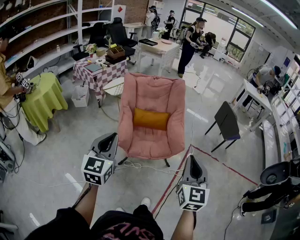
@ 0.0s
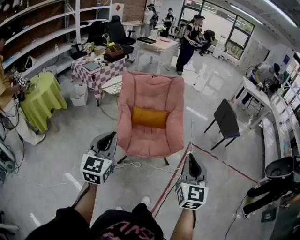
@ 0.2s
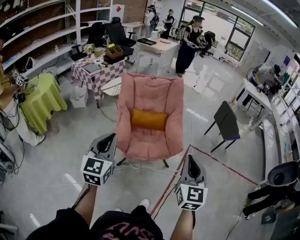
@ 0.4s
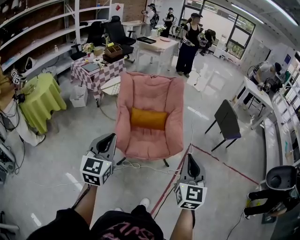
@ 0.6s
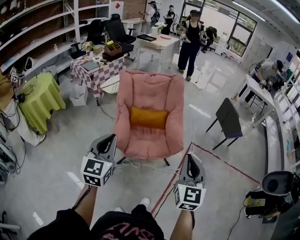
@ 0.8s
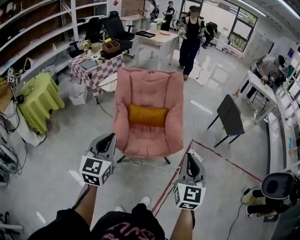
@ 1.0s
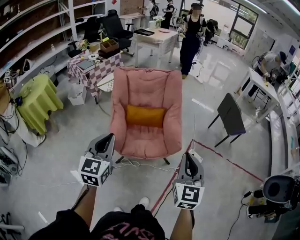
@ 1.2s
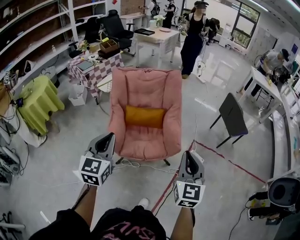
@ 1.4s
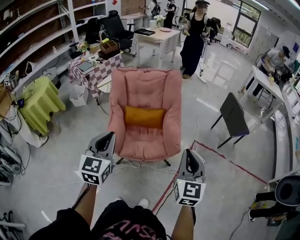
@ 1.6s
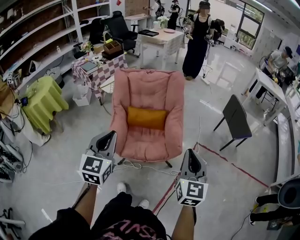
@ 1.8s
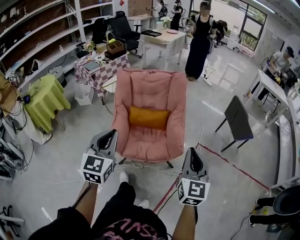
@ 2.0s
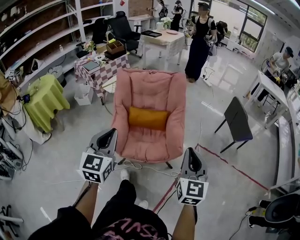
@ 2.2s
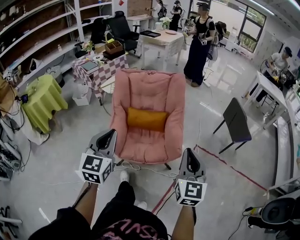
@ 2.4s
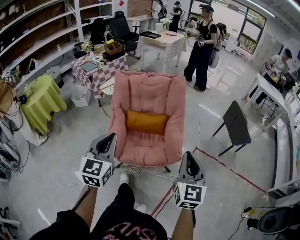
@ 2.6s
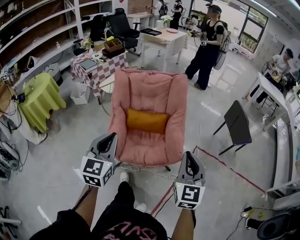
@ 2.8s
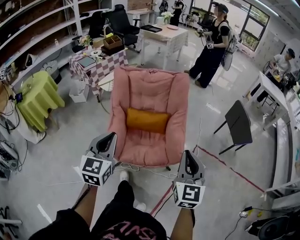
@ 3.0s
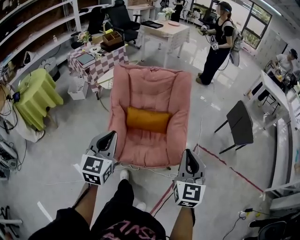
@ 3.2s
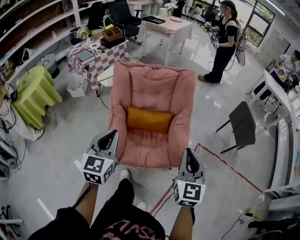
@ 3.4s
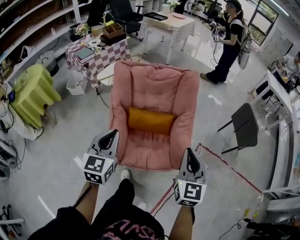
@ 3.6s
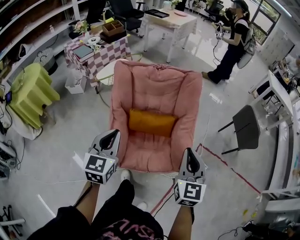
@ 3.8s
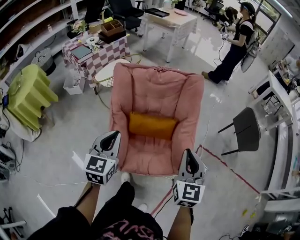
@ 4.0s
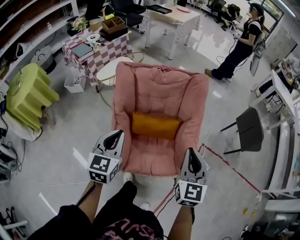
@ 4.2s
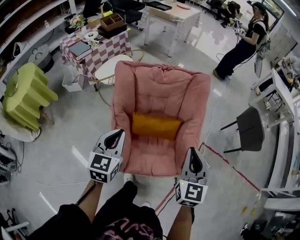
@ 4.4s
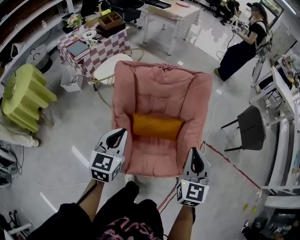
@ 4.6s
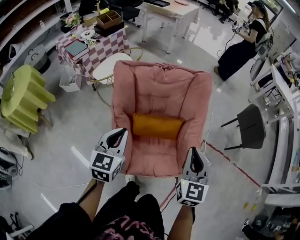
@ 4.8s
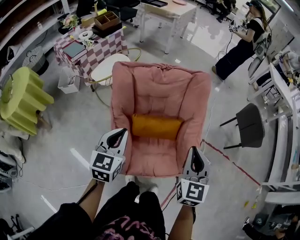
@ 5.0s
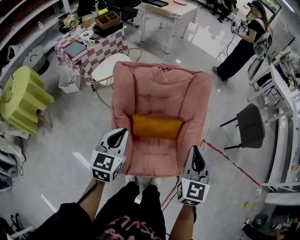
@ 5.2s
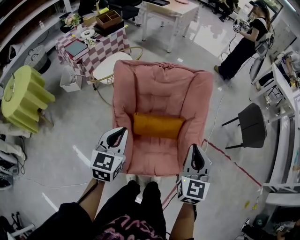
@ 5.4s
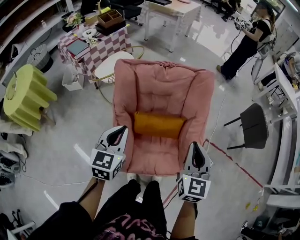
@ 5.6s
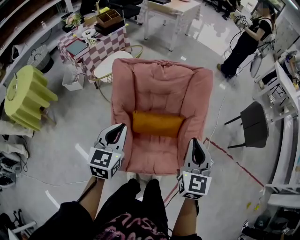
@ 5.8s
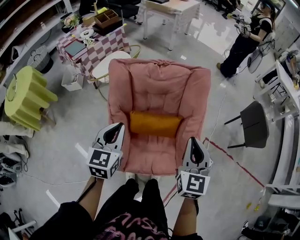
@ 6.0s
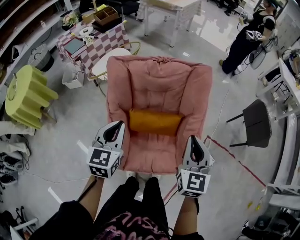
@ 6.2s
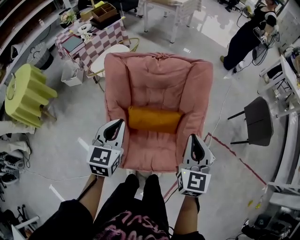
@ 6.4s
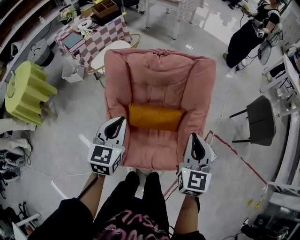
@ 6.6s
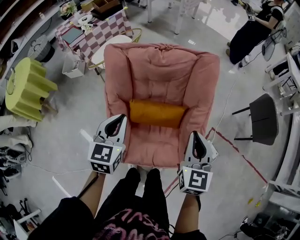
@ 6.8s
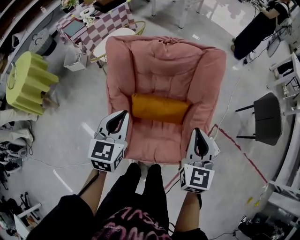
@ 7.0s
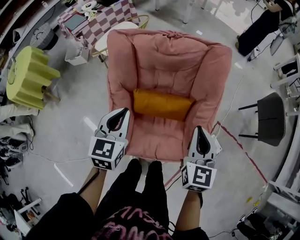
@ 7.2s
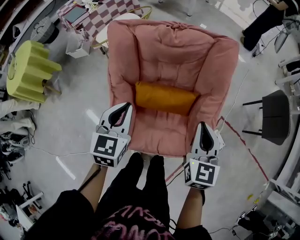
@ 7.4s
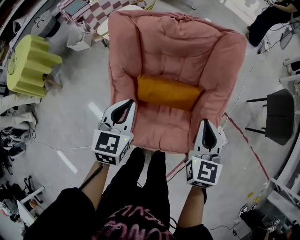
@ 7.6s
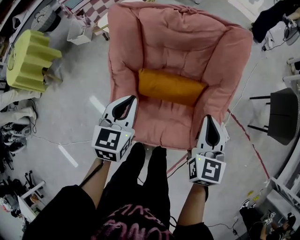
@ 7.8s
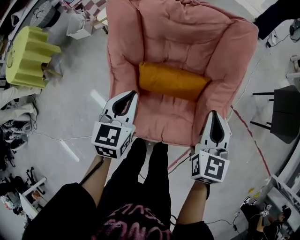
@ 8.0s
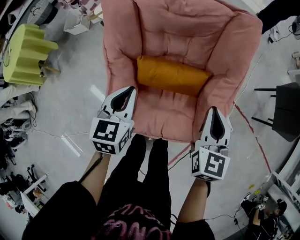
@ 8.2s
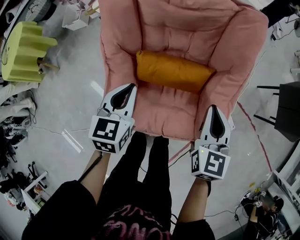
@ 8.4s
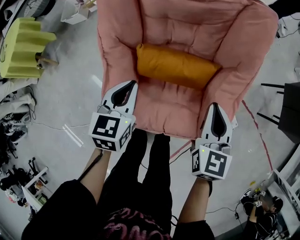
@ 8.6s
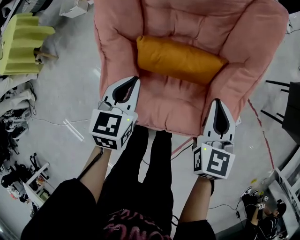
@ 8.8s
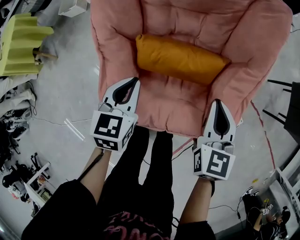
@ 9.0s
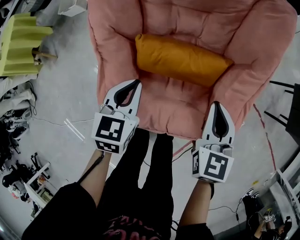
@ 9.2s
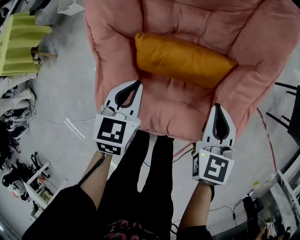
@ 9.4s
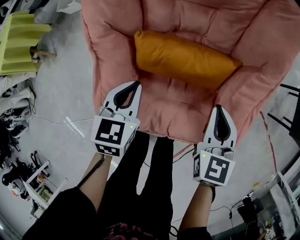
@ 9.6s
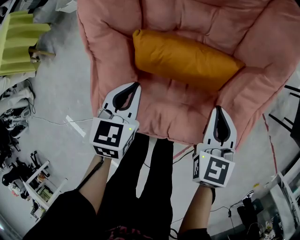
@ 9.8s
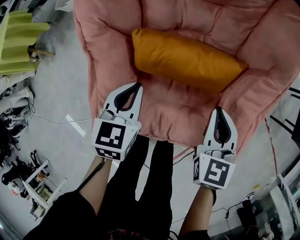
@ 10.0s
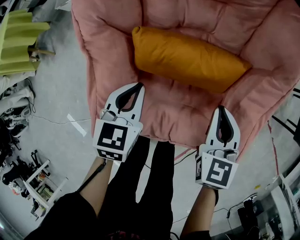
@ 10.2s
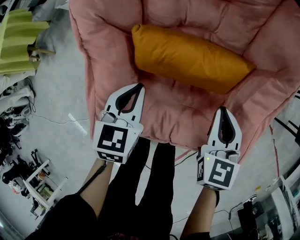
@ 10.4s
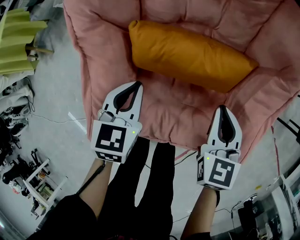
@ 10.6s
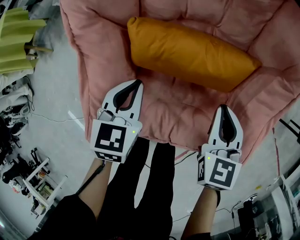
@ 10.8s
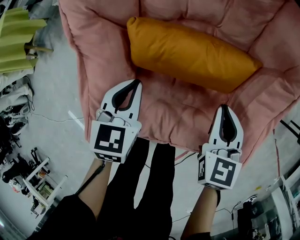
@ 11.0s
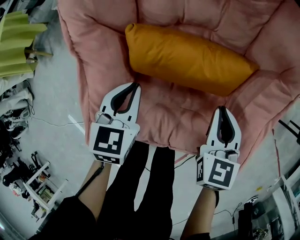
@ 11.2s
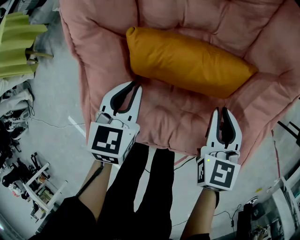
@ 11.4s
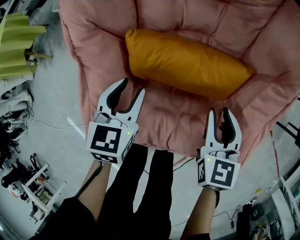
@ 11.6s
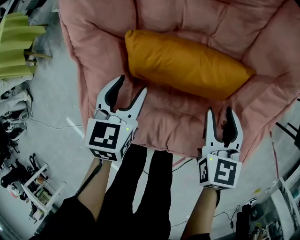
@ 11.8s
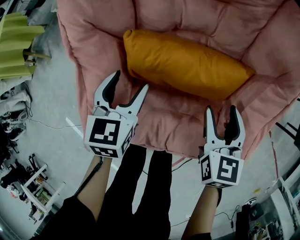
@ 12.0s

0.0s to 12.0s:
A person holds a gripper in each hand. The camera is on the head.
0.0s to 1.6s: Both grippers move forward and to the right, roughly 20 cm.
1.6s to 3.0s: The two grippers go roughly 10 cm forward.
3.0s to 4.4s: The left gripper heads forward, covering about 25 cm, while the right gripper is displaced forward and to the left by roughly 25 cm.
4.4s to 6.0s: Both grippers move forward, about 5 cm.
6.0s to 7.6s: Both grippers move downward, some 15 cm.
7.6s to 9.0s: Both grippers move downward, about 15 cm.
9.0s to 10.4s: Both grippers travel together downward, roughly 10 cm.
10.4s to 12.0s: The right gripper opens. Meanwhile the left gripper opens.

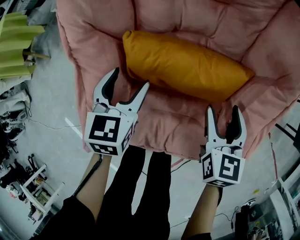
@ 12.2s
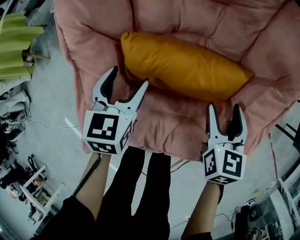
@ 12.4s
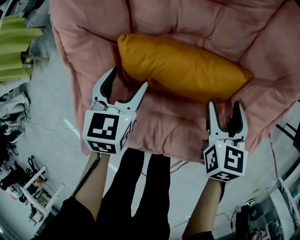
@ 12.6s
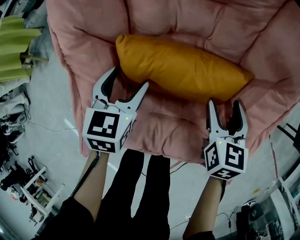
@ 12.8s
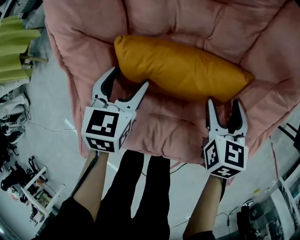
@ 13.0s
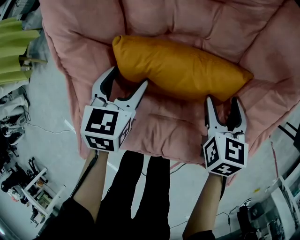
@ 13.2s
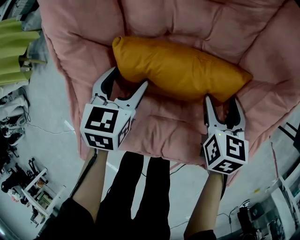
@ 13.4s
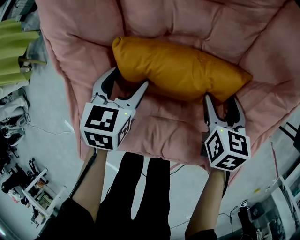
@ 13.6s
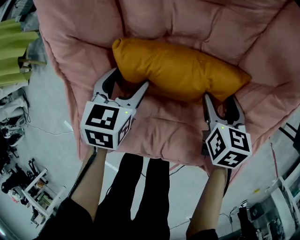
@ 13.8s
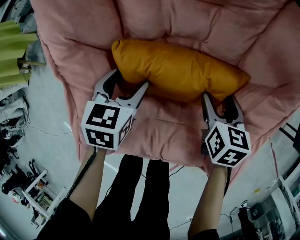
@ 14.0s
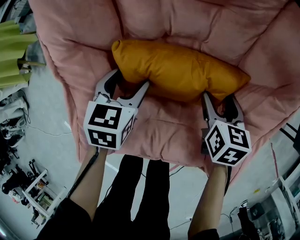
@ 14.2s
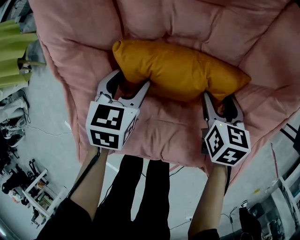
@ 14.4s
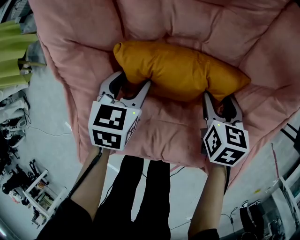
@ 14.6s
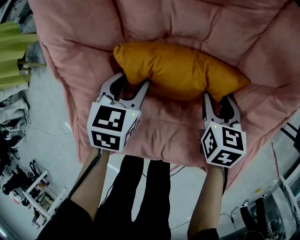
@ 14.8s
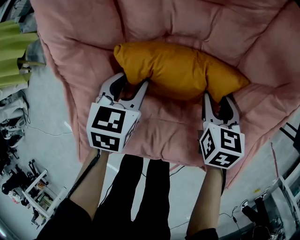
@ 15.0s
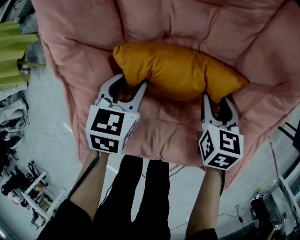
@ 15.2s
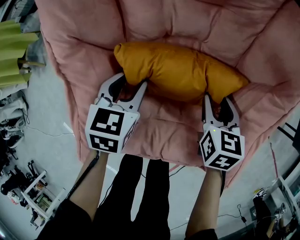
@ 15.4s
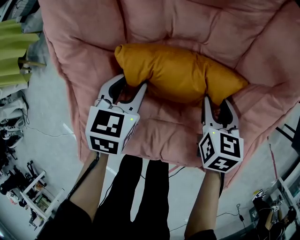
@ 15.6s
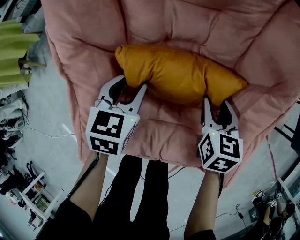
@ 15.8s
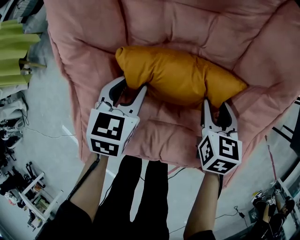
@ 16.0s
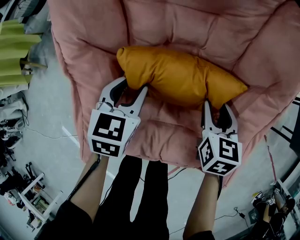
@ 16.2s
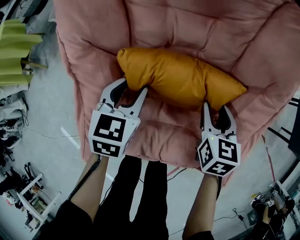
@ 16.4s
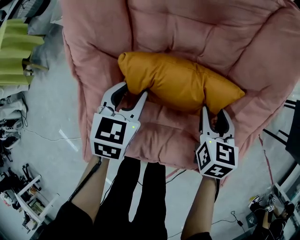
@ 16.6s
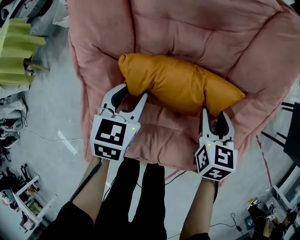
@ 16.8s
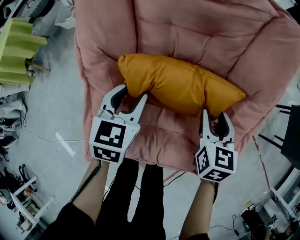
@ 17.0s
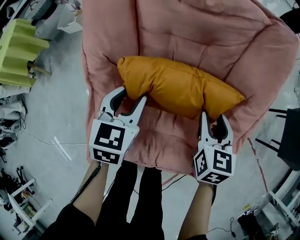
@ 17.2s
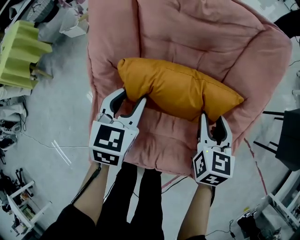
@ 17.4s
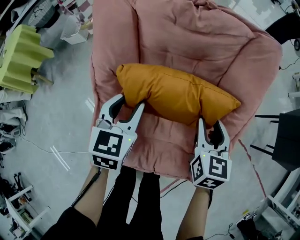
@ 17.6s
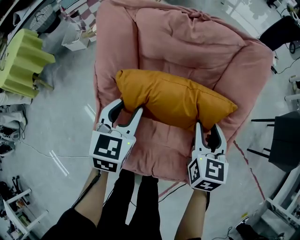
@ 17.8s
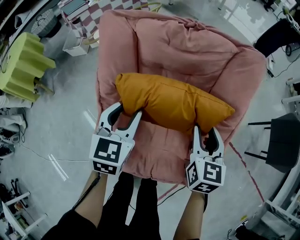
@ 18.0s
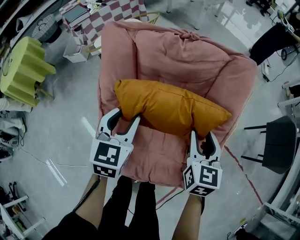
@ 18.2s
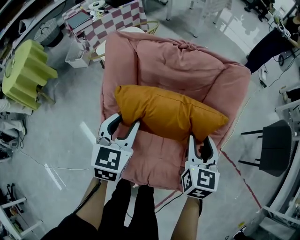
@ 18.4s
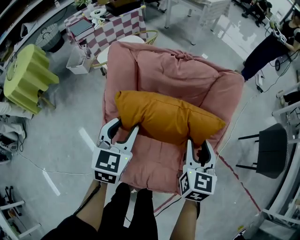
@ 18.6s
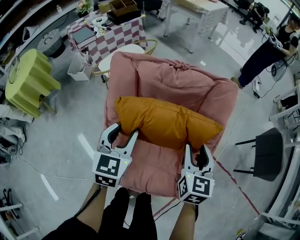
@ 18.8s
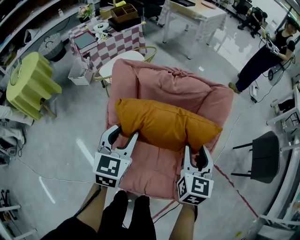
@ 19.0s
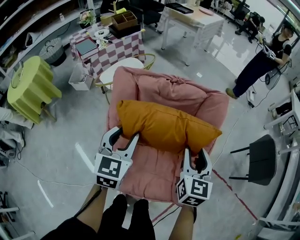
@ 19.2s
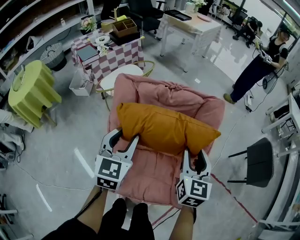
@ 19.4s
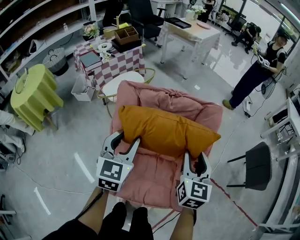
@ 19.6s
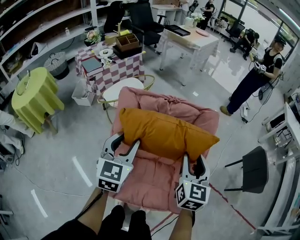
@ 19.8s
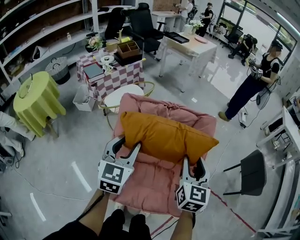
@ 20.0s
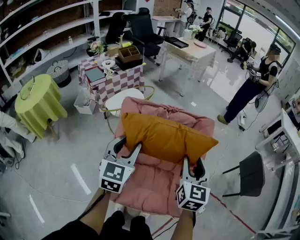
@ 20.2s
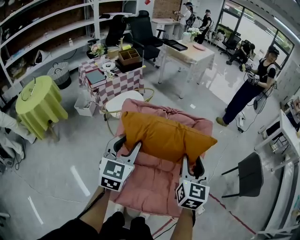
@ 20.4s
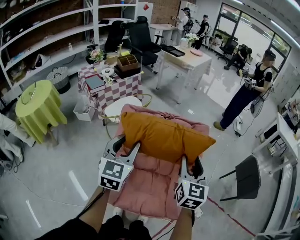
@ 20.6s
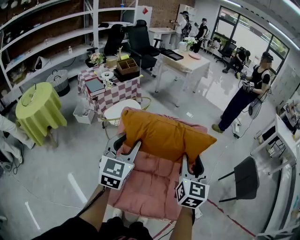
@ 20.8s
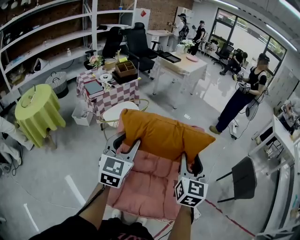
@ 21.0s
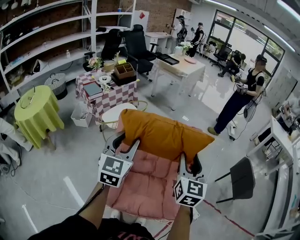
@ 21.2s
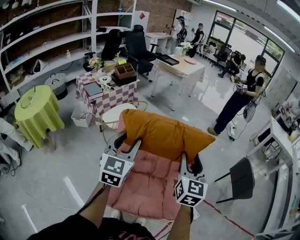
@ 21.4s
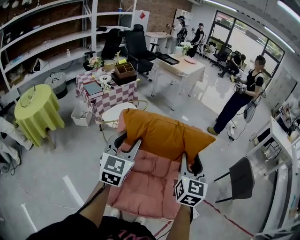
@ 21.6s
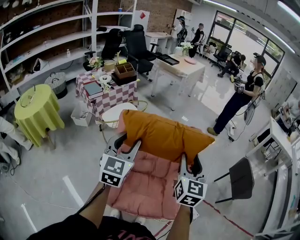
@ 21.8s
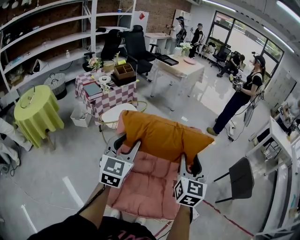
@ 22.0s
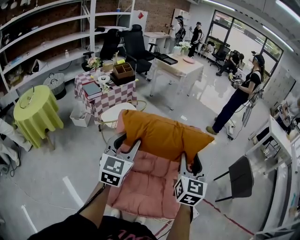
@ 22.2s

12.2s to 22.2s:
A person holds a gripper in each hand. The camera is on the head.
12.2s to 13.6s: The left gripper moves approximately 5 cm. Meanwhile the right gripper shifts some 5 cm downward.
13.6s to 15.0s: The left gripper closes up. Meanwhile the right gripper closes up.
15.0s to 16.4s: The right gripper changes place by roughly 5 cm; the left gripper shifts by about 5 cm.
16.4s to 18.0s: Both grippers travel together upward, approximately 20 cm.
18.0s to 19.4s: The two grippers go roughly 20 cm upward.
19.4s to 20.8s: The grippers both shift upward by approximately 15 cm.
20.8s to 22.2s: There are only small adjustments of the grippers.

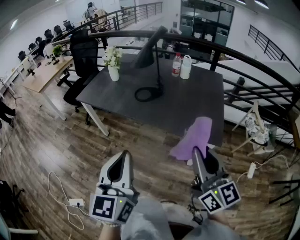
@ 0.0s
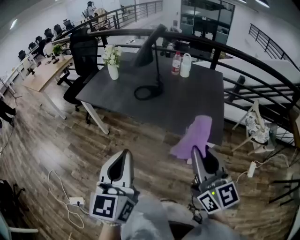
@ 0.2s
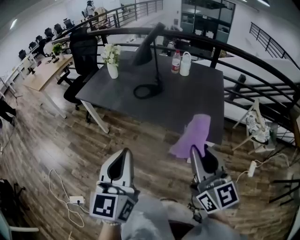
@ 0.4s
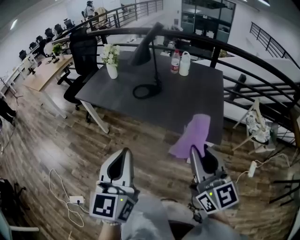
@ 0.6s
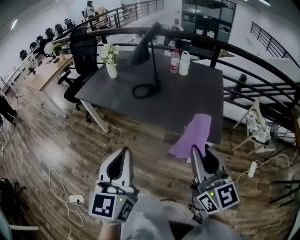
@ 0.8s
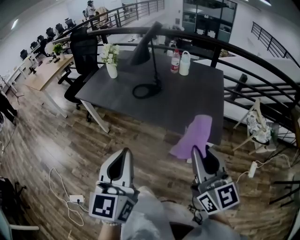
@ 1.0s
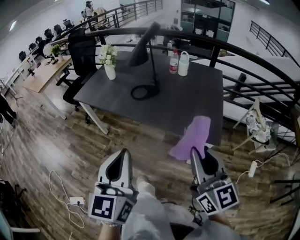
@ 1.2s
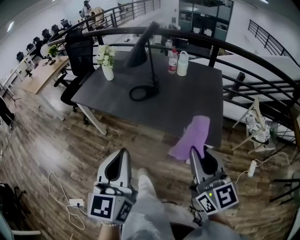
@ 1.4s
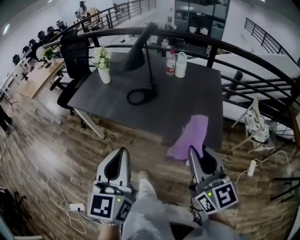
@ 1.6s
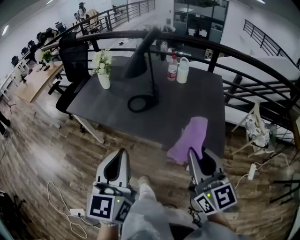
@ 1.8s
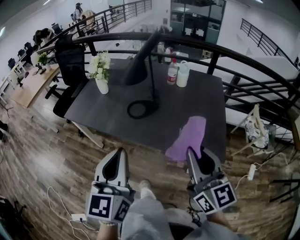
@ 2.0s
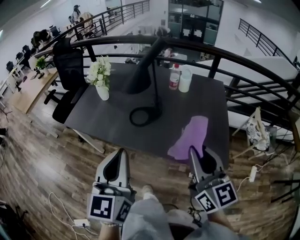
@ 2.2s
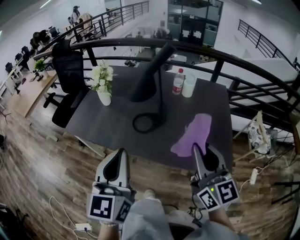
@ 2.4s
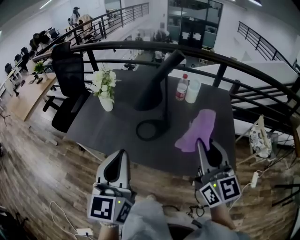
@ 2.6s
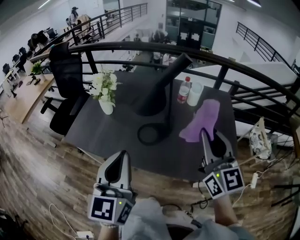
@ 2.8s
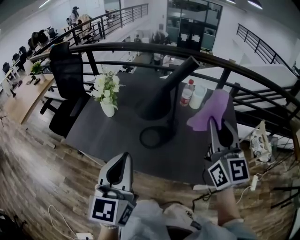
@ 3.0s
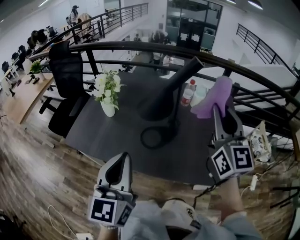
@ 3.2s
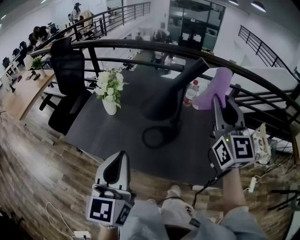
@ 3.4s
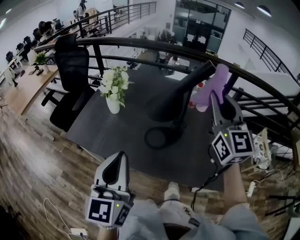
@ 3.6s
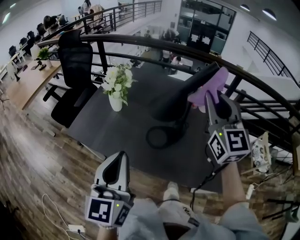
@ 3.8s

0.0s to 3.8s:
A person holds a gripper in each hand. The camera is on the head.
0.0s to 1.2s: There are only small adjustments of the grippers.
1.2s to 2.6s: Both grippers move forward, roughly 25 cm.
2.6s to 3.8s: The left gripper travels to the left by roughly 5 cm. Meanwhile the right gripper moves forward, approximately 20 cm.
